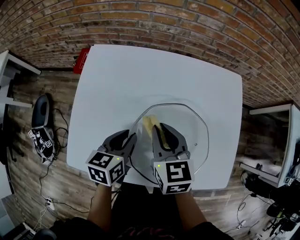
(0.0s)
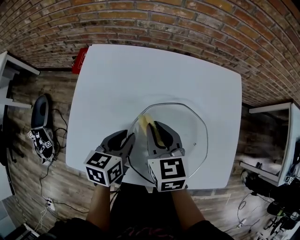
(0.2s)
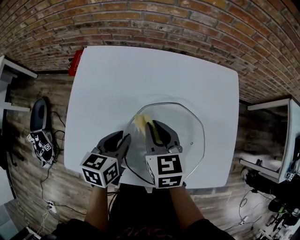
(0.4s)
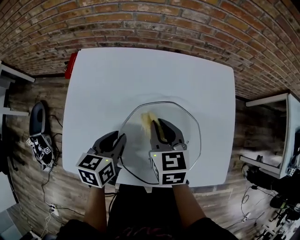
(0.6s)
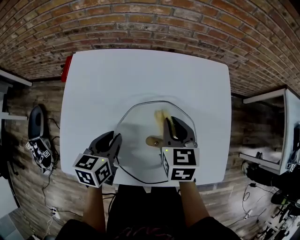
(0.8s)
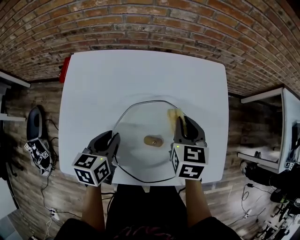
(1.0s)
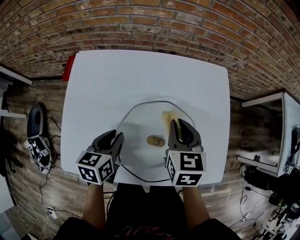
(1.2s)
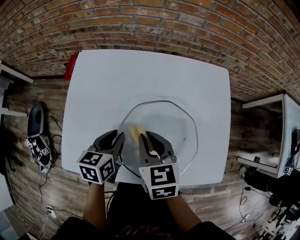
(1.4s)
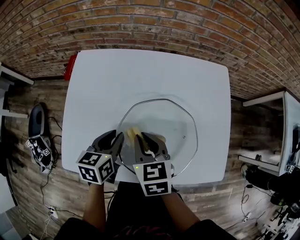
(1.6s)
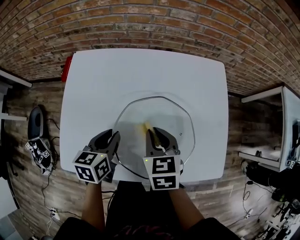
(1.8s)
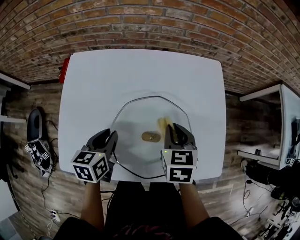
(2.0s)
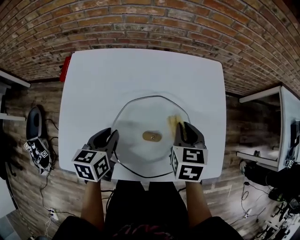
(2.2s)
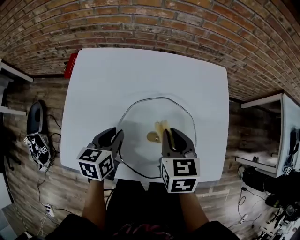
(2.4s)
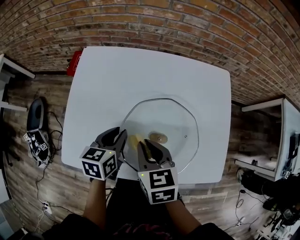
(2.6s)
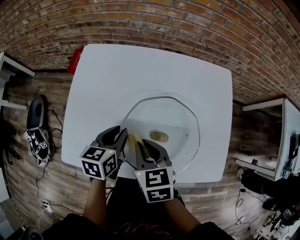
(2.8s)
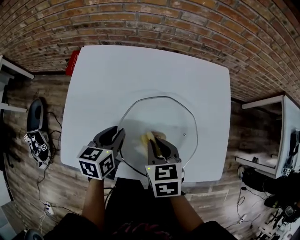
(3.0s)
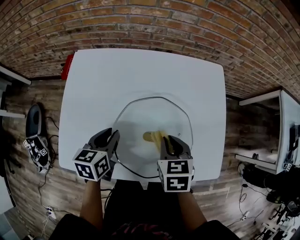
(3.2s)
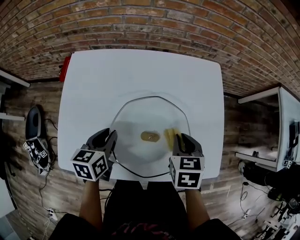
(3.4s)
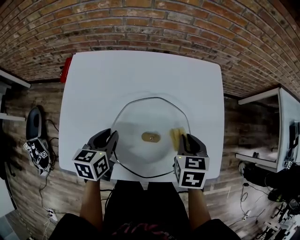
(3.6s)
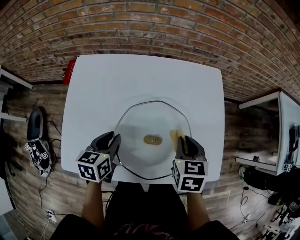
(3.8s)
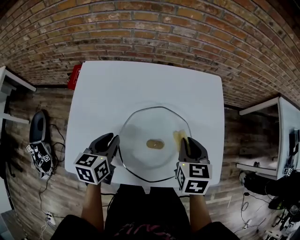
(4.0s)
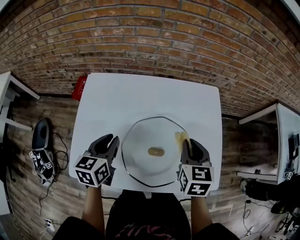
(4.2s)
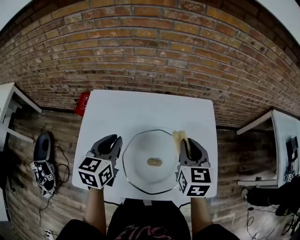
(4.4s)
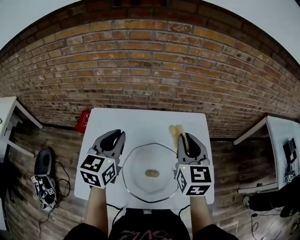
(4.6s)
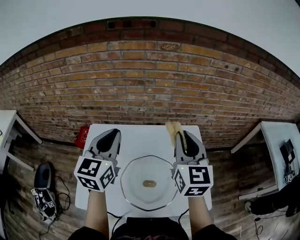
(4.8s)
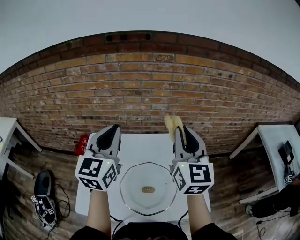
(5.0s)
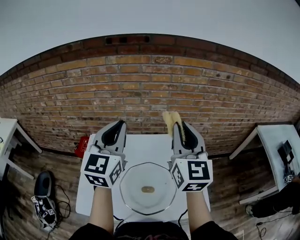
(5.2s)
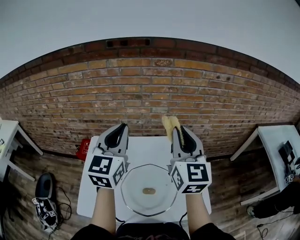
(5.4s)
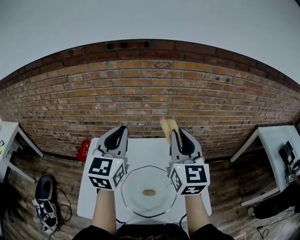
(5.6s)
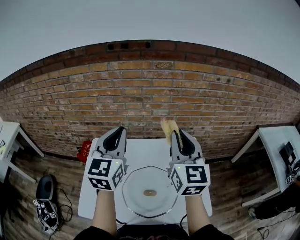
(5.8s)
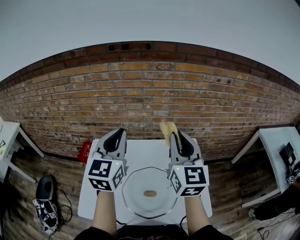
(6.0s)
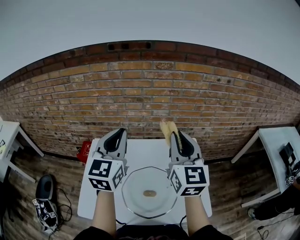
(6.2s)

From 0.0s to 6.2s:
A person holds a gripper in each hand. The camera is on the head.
From 0.0s to 1.6s: The right gripper travels to the right and back again, roughly 15 cm each way.
From 1.6s to 3.2s: The right gripper goes left and right, about 15 cm each way, reversing 2 times.
From 3.2s to 4.6s: Both grippers travel together upward, about 25 cm. The right gripper tips its fingers upward by roughly 40 degrees. The left gripper turns by roughly 30 degrees.
From 4.6s to 6.2s: The two grippers go some 15 cm upward. The left gripper turns by some 20 degrees.

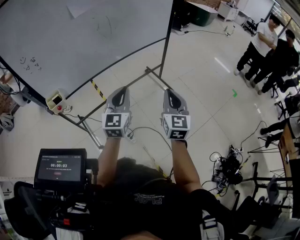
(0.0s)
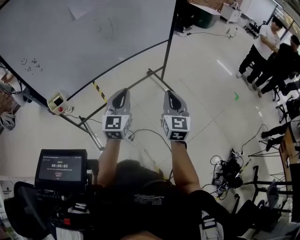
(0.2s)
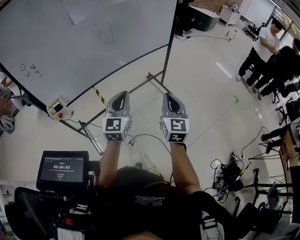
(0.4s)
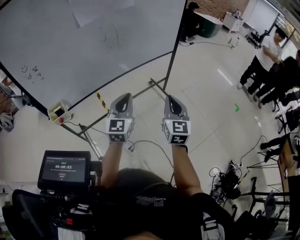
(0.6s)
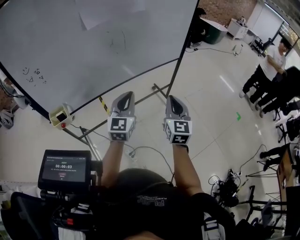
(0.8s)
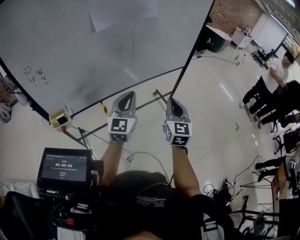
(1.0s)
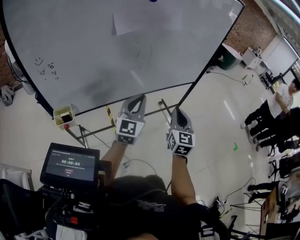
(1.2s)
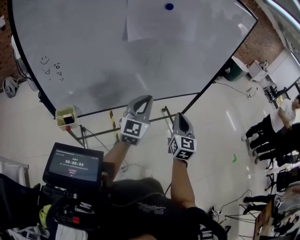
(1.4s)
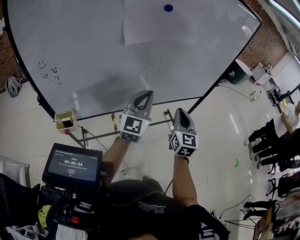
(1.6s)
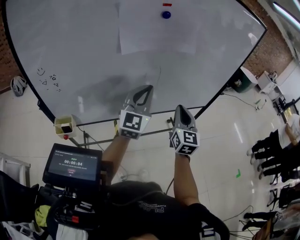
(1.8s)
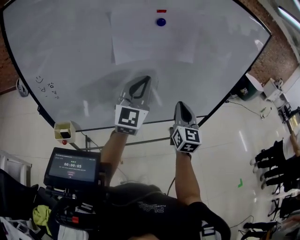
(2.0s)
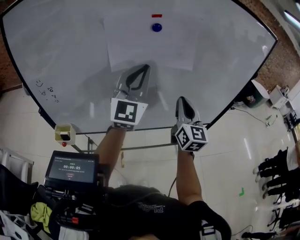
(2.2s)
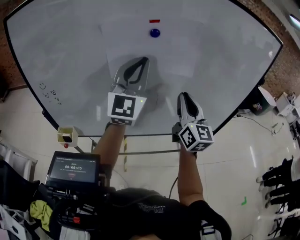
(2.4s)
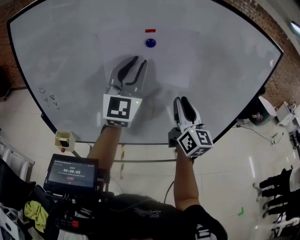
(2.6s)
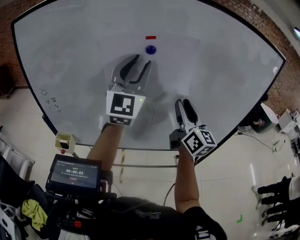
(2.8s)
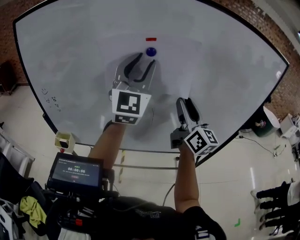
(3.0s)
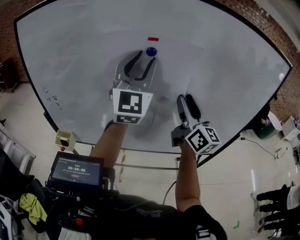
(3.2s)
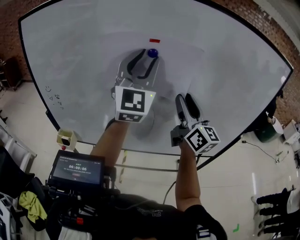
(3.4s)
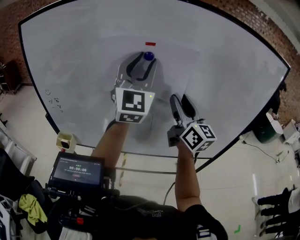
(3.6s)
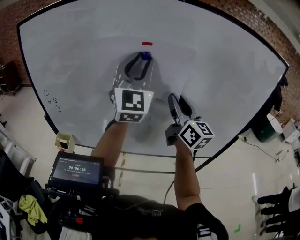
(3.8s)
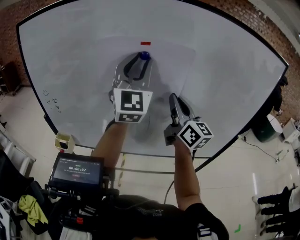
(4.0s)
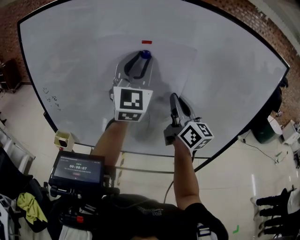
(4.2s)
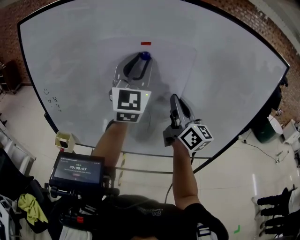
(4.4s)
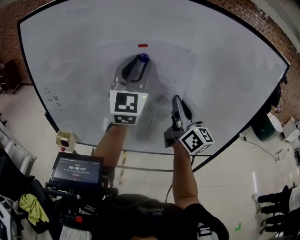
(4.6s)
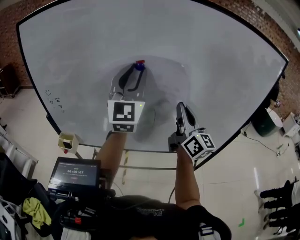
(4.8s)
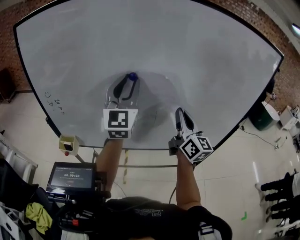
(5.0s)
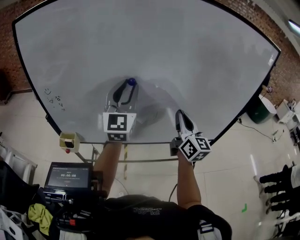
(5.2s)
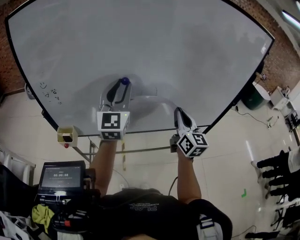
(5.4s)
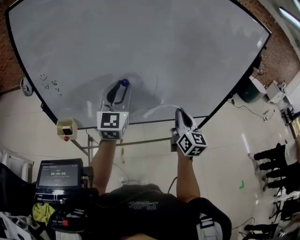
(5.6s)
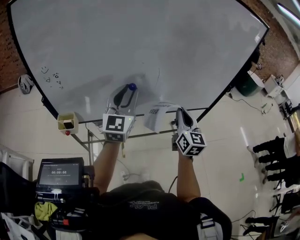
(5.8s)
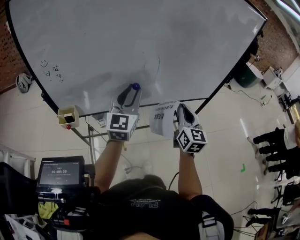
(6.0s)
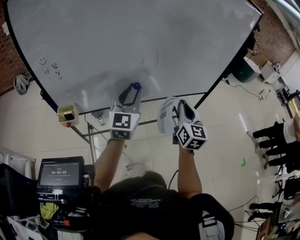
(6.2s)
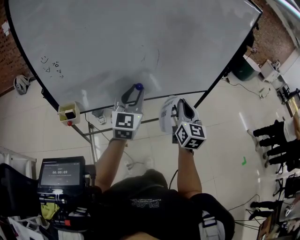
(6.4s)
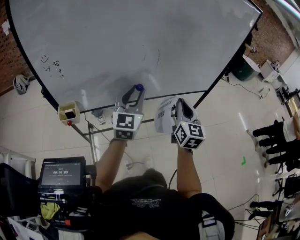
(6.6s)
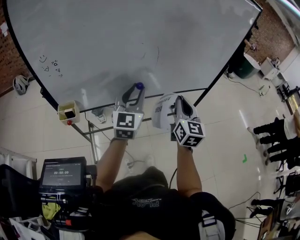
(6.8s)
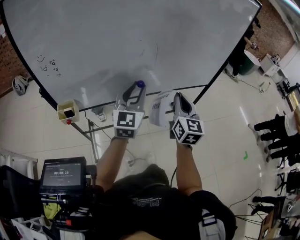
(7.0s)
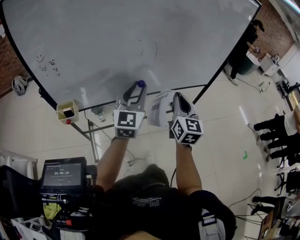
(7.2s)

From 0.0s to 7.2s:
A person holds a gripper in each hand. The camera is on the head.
From 0.0s to 1.4s: Both grippers travel together forward and to the left, roughly 25 cm.
From 1.4s to 2.8s: The right gripper ends up roughly 30 cm from where it was, rotates roughly 50 degrees, and opens its fingers. Meanwhile the left gripper travels upward by approximately 30 cm, turns by about 40 degrees, and opens its fingers.
From 2.8s to 4.4s: The right gripper closes its fingers.
From 4.4s to 5.8s: The two grippers go roughly 25 cm downward and backward. The left gripper turns by roughly 30 degrees; the right gripper turns by approximately 40 degrees.
From 5.8s to 7.2s: The left gripper is displaced downward by some 5 cm.

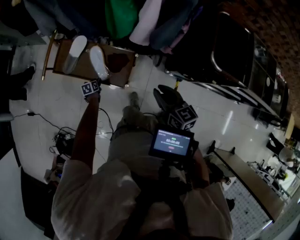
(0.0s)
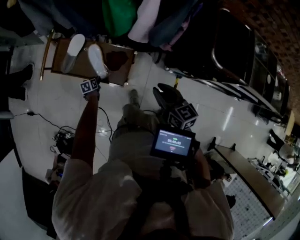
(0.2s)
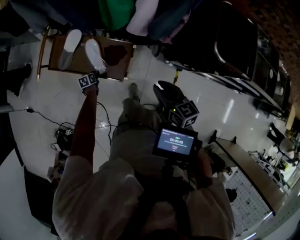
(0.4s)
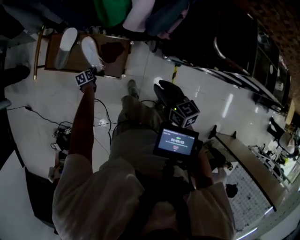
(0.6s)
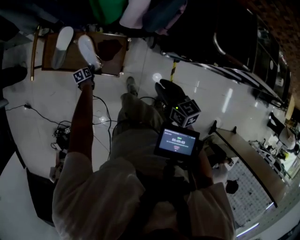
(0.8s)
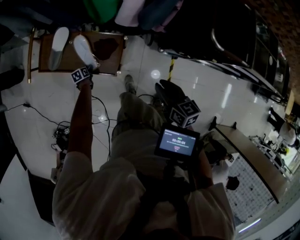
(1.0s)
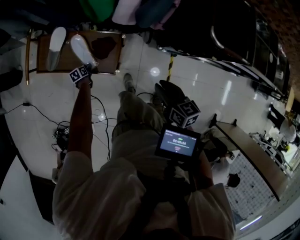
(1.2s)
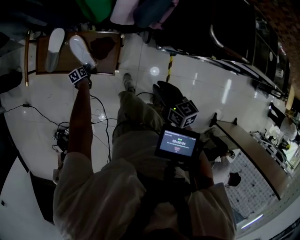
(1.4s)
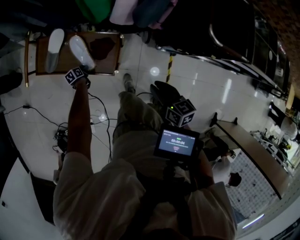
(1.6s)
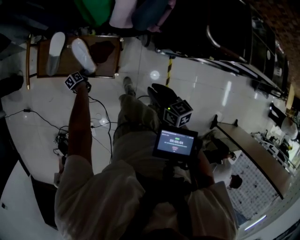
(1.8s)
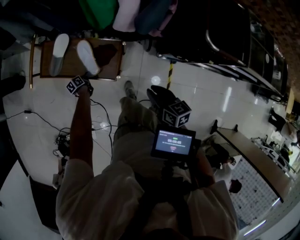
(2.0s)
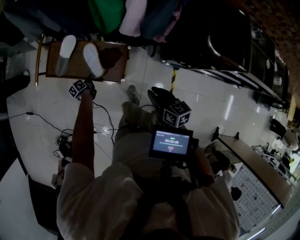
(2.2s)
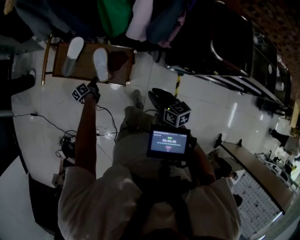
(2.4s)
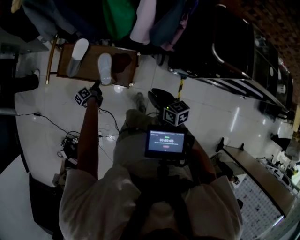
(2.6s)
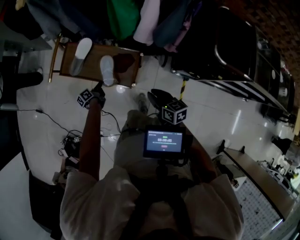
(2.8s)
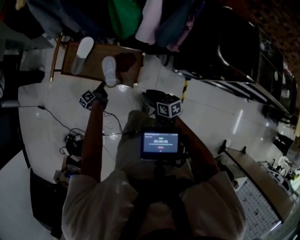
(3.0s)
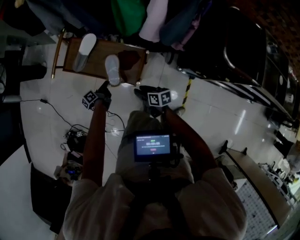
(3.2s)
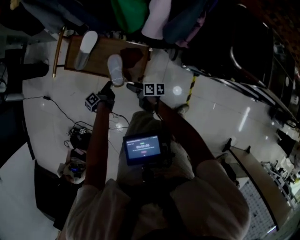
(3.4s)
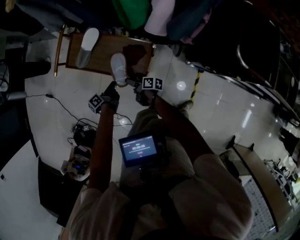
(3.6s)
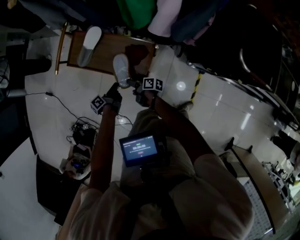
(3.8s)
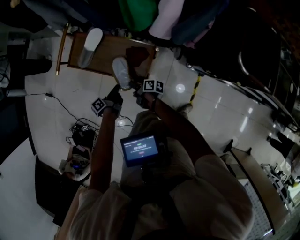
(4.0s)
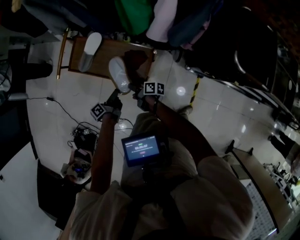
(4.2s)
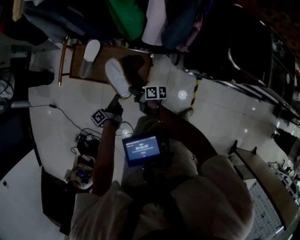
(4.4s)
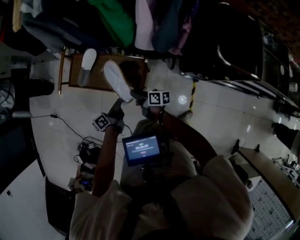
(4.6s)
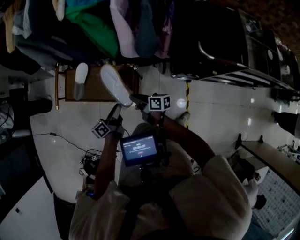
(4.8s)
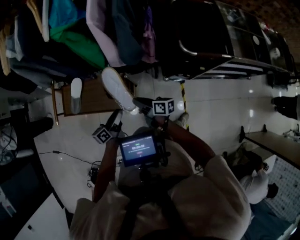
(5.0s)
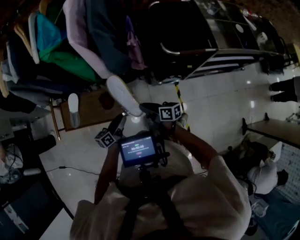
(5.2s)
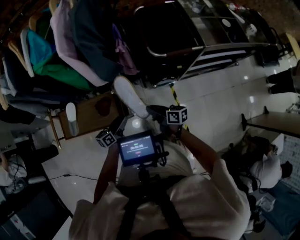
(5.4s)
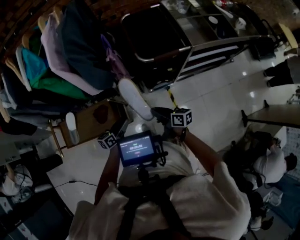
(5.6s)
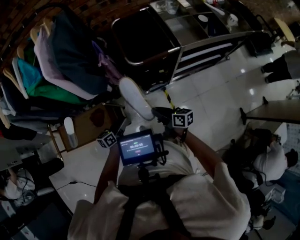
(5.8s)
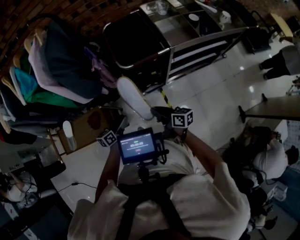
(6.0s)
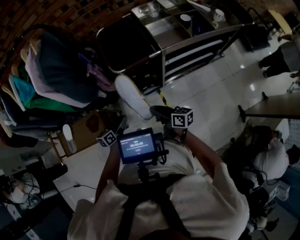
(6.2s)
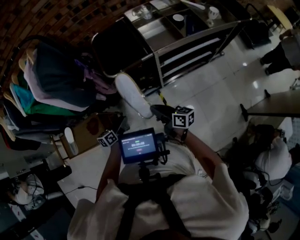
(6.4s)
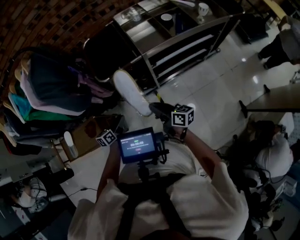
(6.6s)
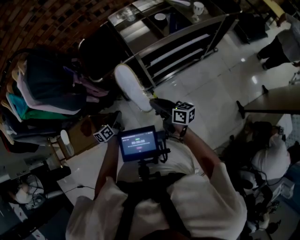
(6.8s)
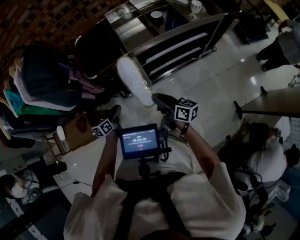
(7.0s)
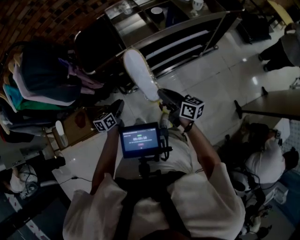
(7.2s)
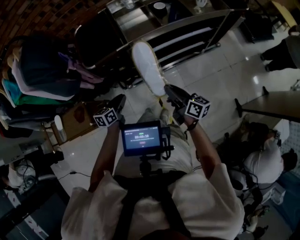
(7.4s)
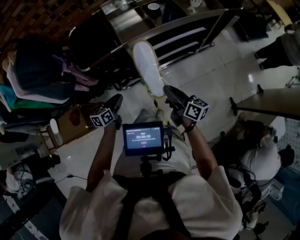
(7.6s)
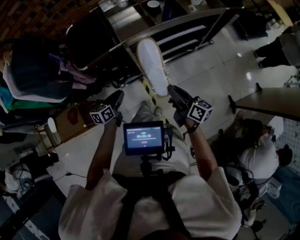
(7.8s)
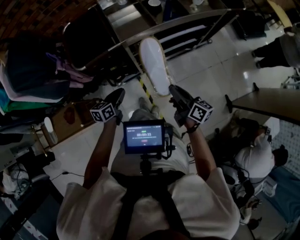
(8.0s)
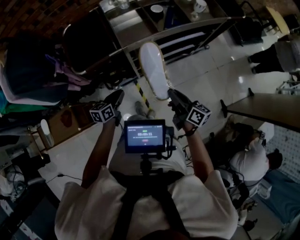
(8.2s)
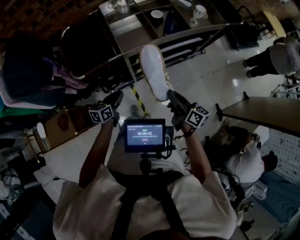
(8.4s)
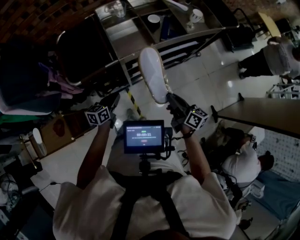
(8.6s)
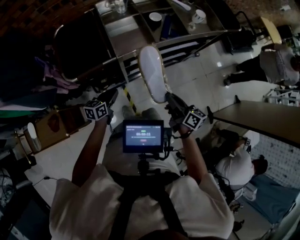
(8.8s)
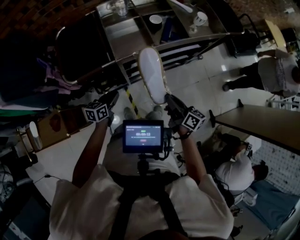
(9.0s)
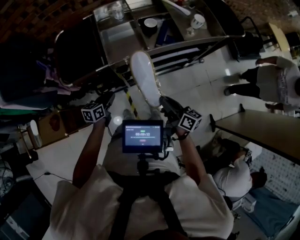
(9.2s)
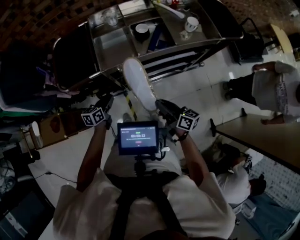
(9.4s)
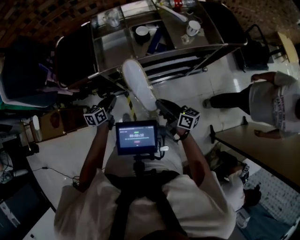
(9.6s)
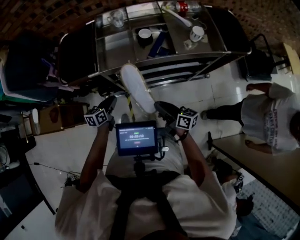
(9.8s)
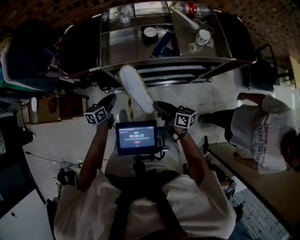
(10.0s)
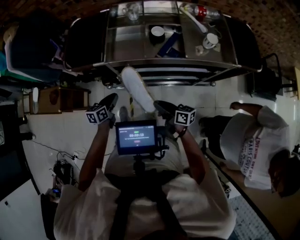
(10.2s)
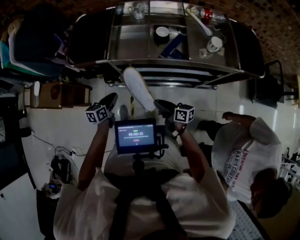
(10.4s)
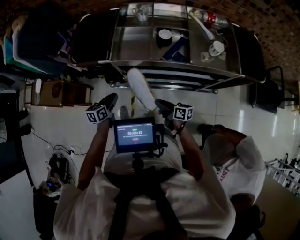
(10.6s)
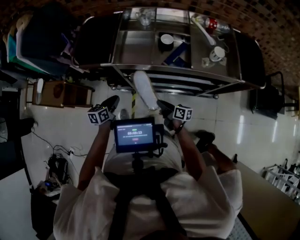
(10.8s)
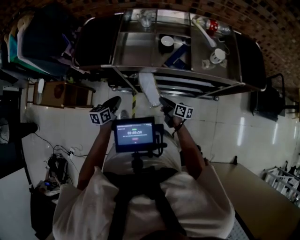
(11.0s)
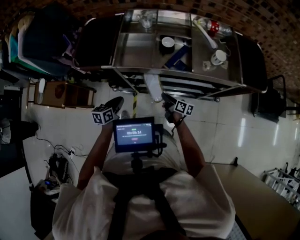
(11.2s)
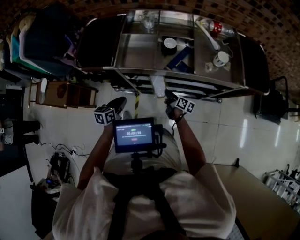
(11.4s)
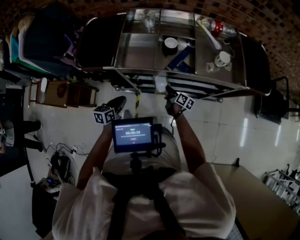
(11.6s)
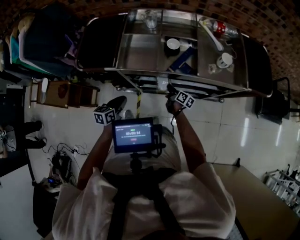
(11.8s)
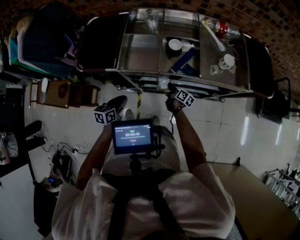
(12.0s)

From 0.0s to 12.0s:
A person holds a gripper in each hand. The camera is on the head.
From 0.0s to 1.6s: The grippers both shift downward by approximately 10 cm.
From 1.6s to 3.0s: The left gripper heads upward, covering roughly 20 cm, and angles its fingers upward, by roughly 30 degrees. The right gripper is displaced to the left and downward by about 10 cm.
From 3.0s to 4.4s: The right gripper shifts about 15 cm to the left, forward and downward, rotates some 40 degrees, and opens and closes again; the left gripper is displaced upward and backward by approximately 10 cm.
From 4.4s to 6.0s: The right gripper shifts by some 50 cm, and changes its angle by approximately 40 degrees, while the left gripper ends up about 40 cm from where it was, turns by about 60 degrees, and opens its fingers.
From 6.0s to 7.6s: Both grippers travel together to the right, about 30 cm. The right gripper changes its angle by about 20 degrees, while the left gripper closes up.
From 7.6s to 9.0s: Both grippers move forward, about 10 cm.
From 9.0s to 10.4s: The left gripper changes place by approximately 10 cm, and swivels about 30 degrees, while the right gripper heads downward, covering approximately 10 cm, and swivels some 40 degrees.
From 10.4s to 12.0s: The right gripper is displaced forward and downward by about 25 cm, and turns by approximately 30 degrees.
